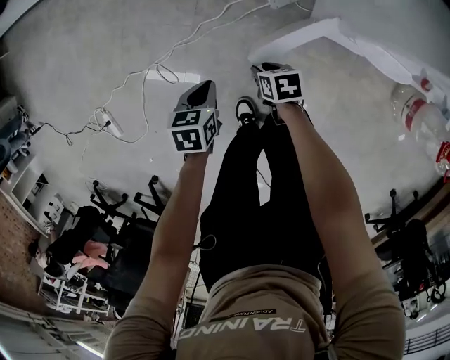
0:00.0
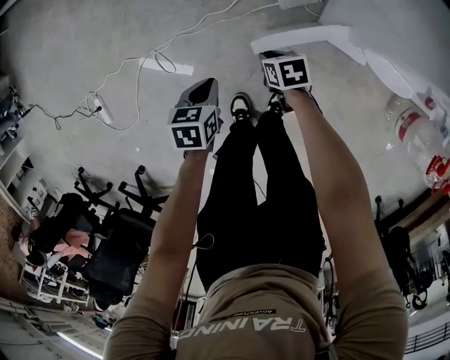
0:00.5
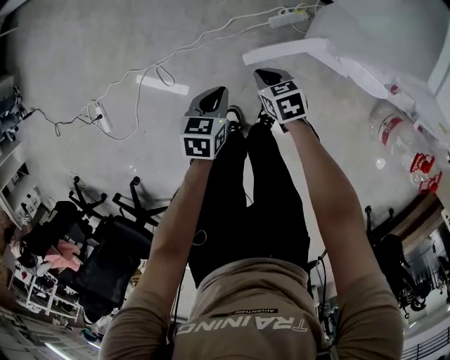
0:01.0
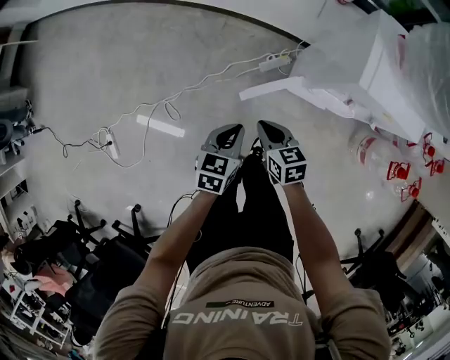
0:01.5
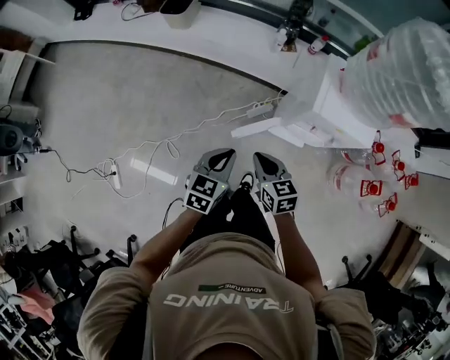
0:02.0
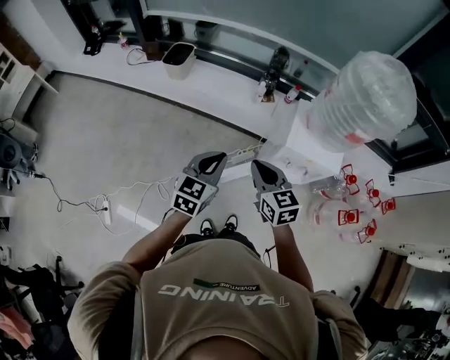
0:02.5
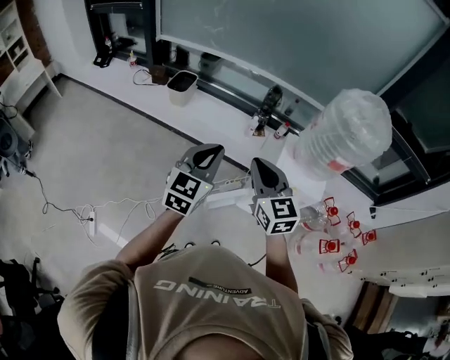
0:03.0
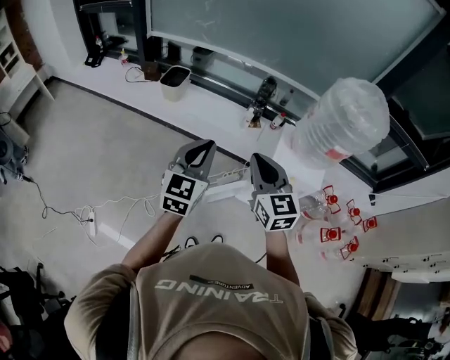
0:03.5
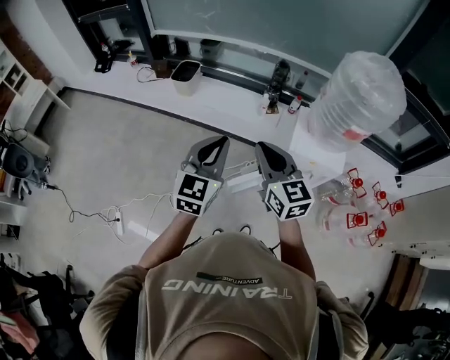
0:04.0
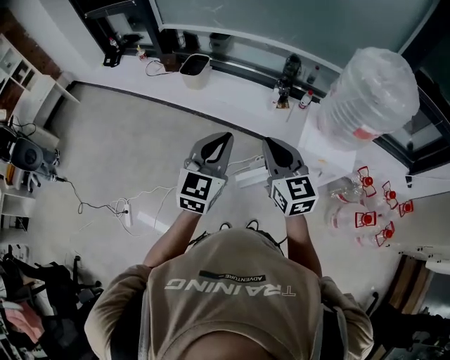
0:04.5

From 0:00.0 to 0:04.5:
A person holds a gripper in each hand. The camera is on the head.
From 0:00.0 to 0:02.0: Both grippers travel together upward, approximately 40 cm. The left gripper turns by about 40 degrees; the right gripper changes its angle by approximately 40 degrees, and closes.
From 0:02.0 to 0:04.5: The grippers both shift upward by about 30 cm. The right gripper turns by approximately 30 degrees. Meanwhile the left gripper swivels about 30 degrees.

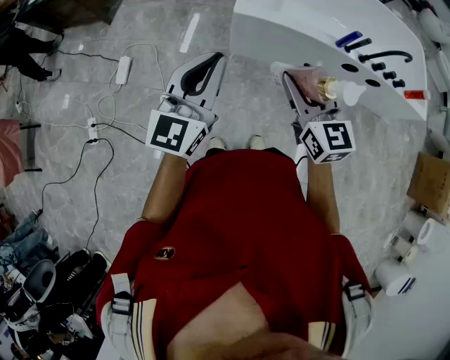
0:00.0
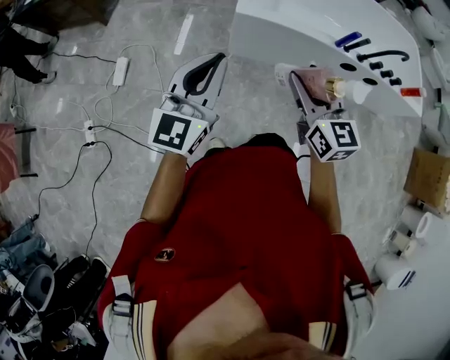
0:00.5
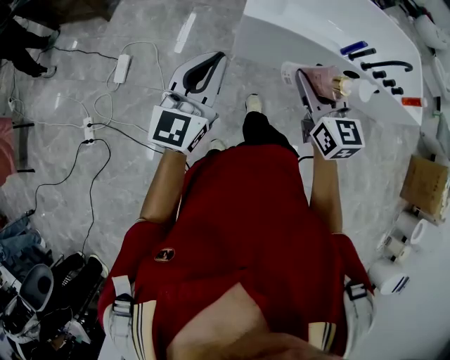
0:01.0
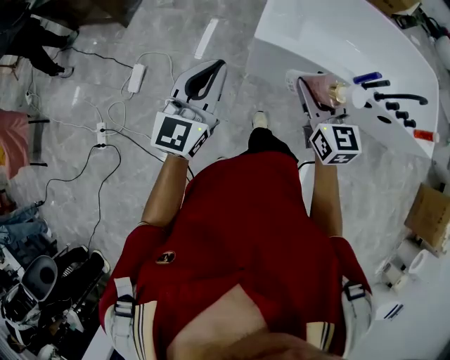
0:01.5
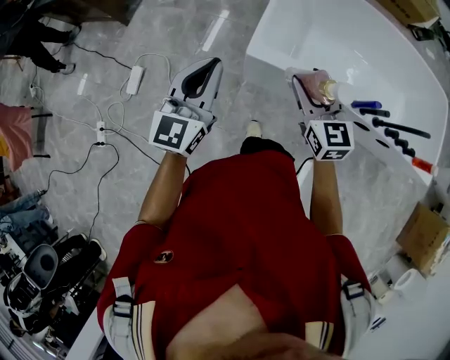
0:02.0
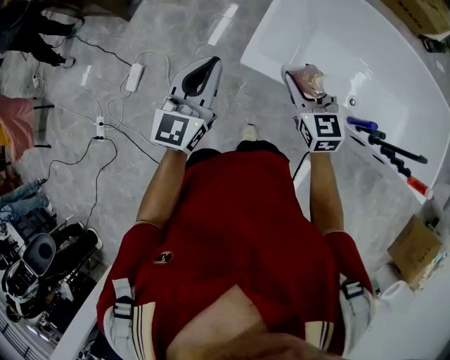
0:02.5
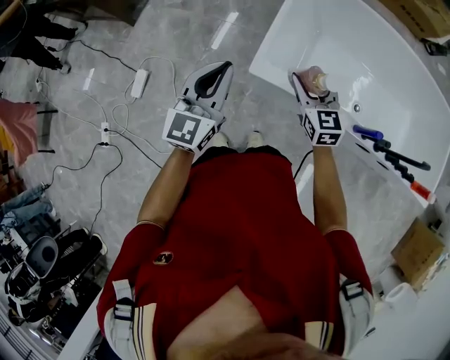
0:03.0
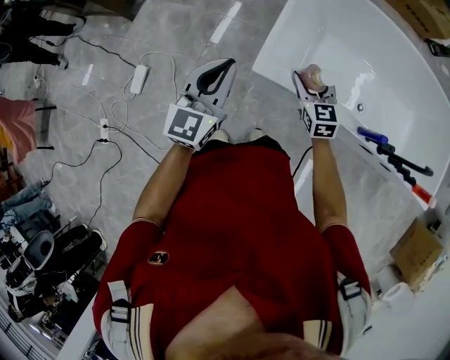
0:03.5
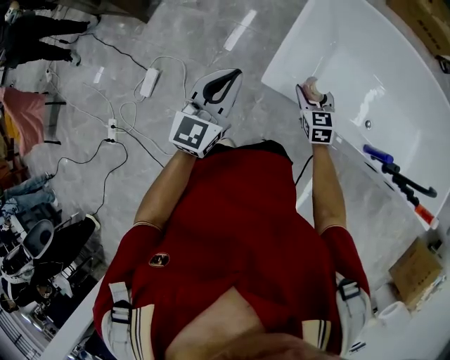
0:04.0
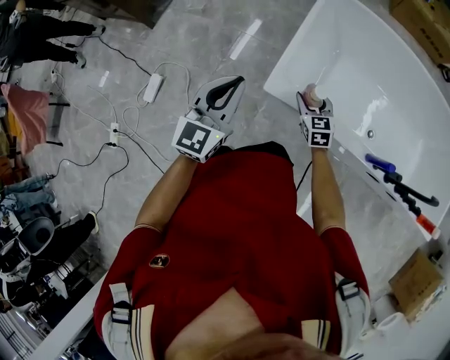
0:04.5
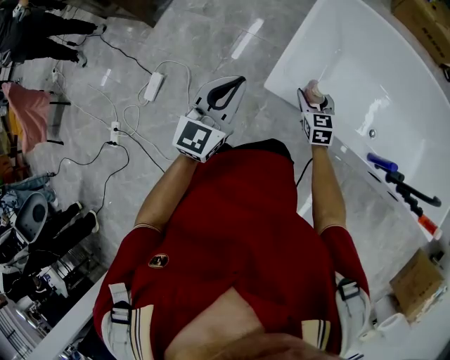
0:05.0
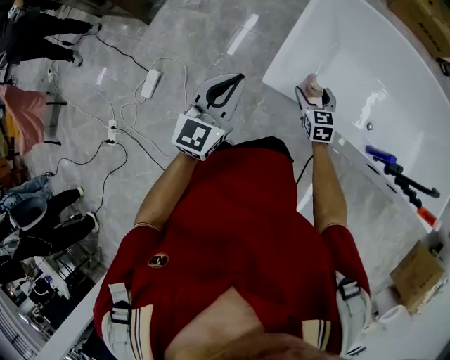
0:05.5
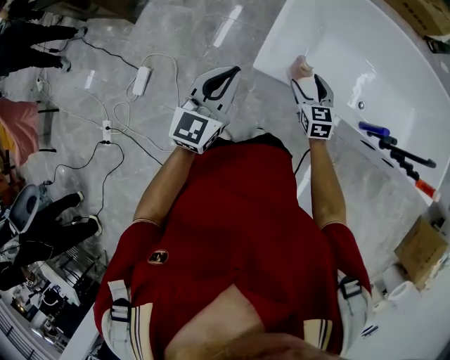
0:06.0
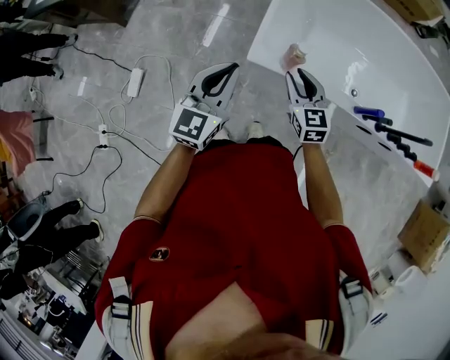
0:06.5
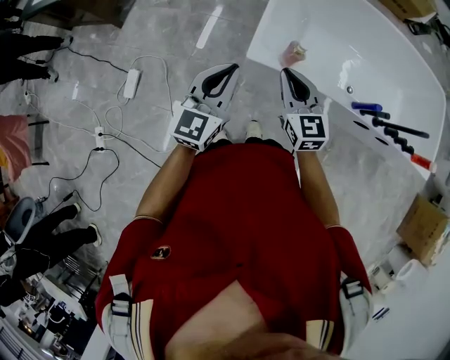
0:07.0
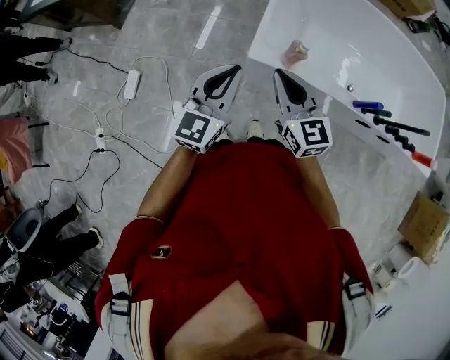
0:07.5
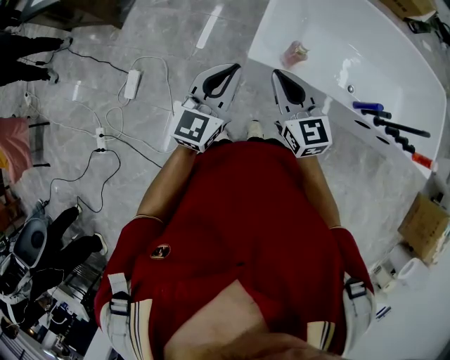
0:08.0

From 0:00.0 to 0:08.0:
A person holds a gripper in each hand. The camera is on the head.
From 0:00.0 to 0:02.0: The two grippers go approximately 30 cm forward.
From 0:02.0 to 0:04.0: The left gripper is displaced forward and downward by roughly 15 cm, while the right gripper heads downward and forward, covering about 30 cm.
From 0:04.0 to 0:06.0: The right gripper shifts roughly 5 cm backward.
From 0:06.0 to 0:08.0: The left gripper changes place by approximately 5 cm, while the right gripper is displaced upward, to the left and backward by roughly 25 cm, and closes.

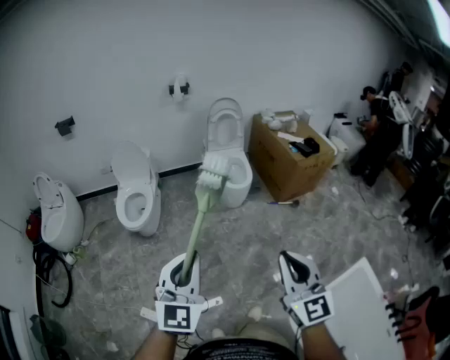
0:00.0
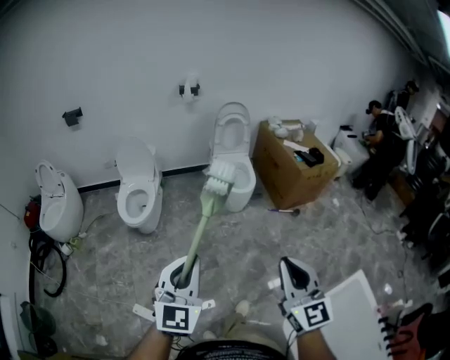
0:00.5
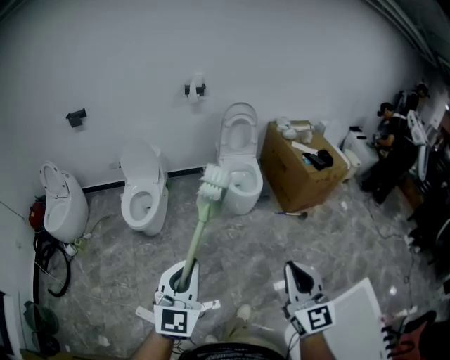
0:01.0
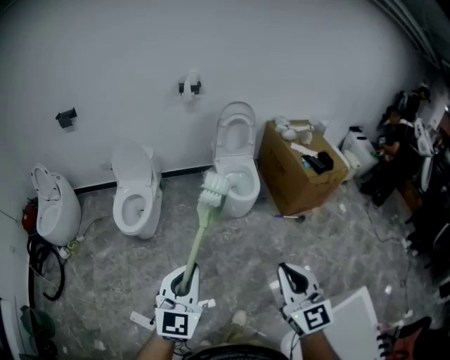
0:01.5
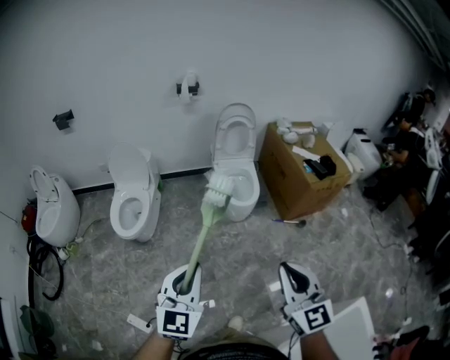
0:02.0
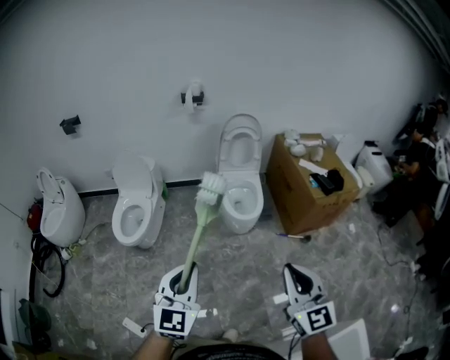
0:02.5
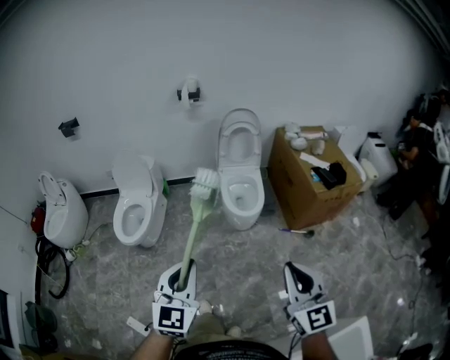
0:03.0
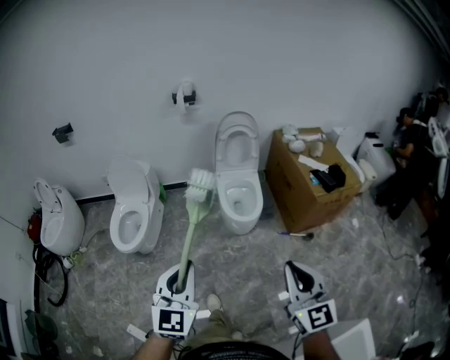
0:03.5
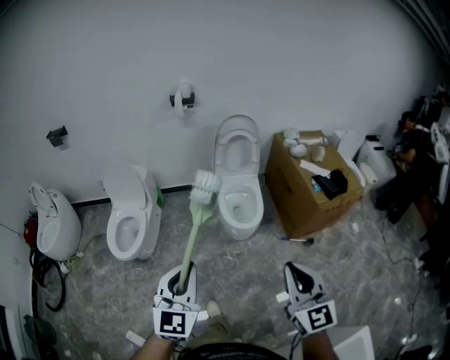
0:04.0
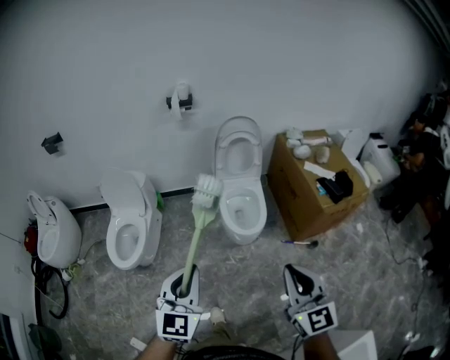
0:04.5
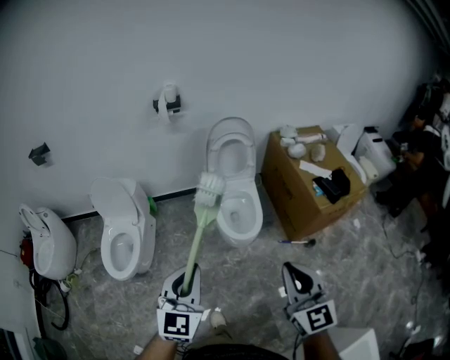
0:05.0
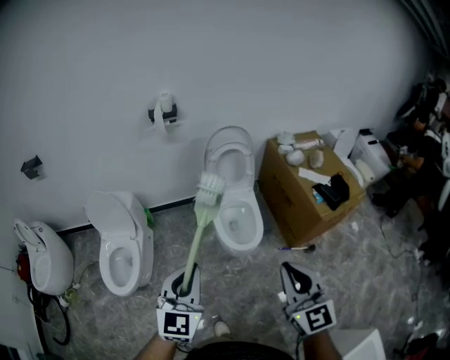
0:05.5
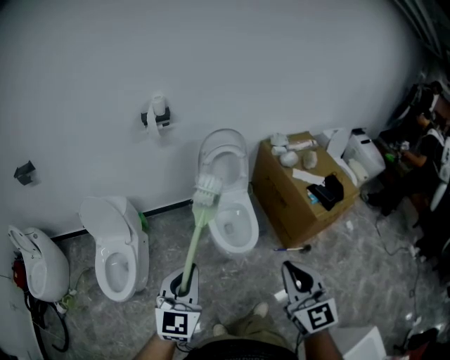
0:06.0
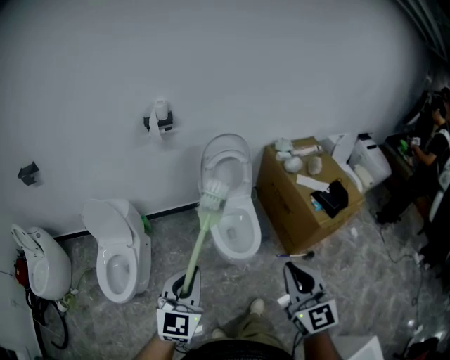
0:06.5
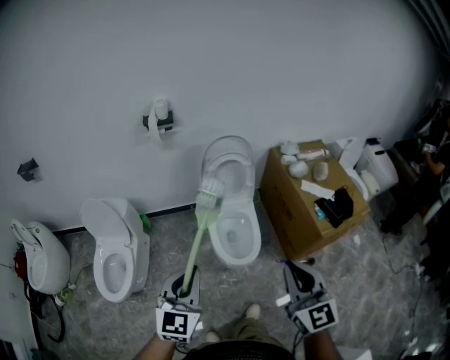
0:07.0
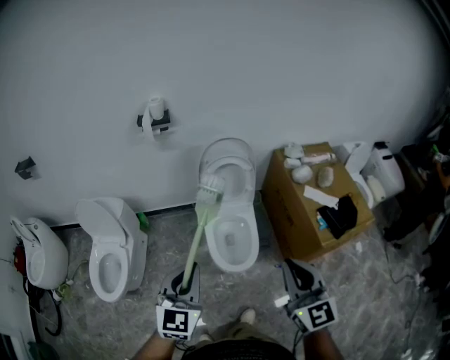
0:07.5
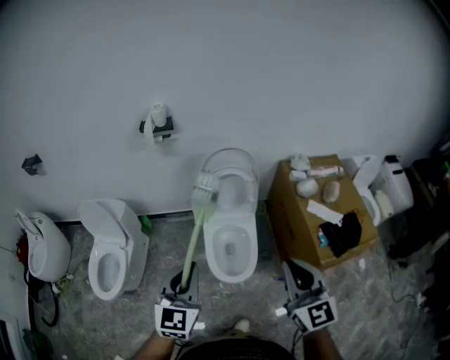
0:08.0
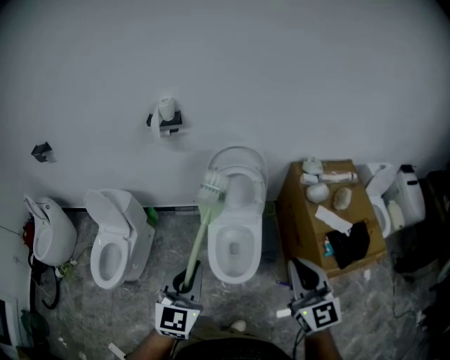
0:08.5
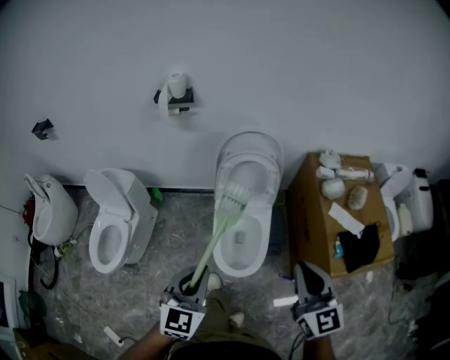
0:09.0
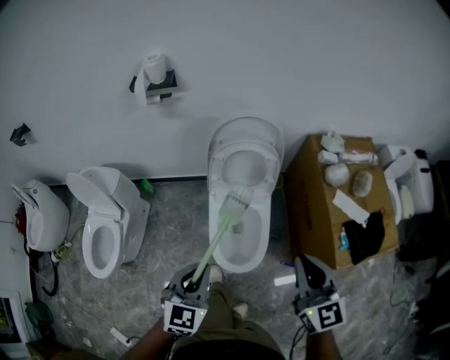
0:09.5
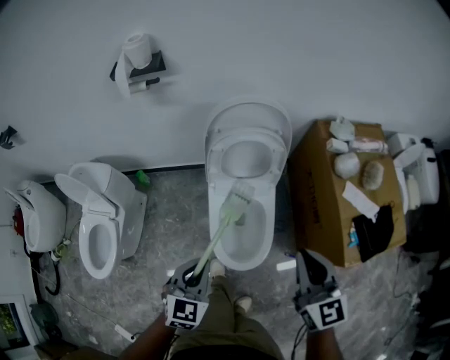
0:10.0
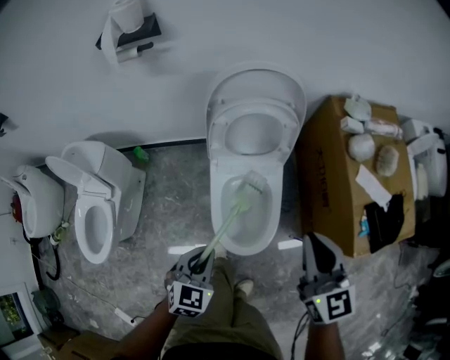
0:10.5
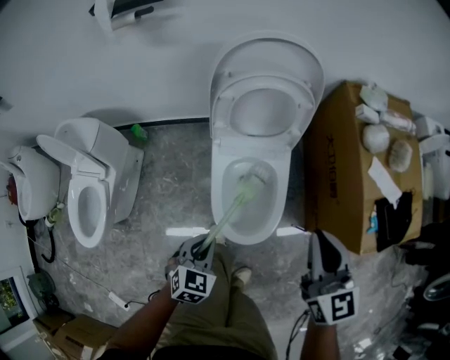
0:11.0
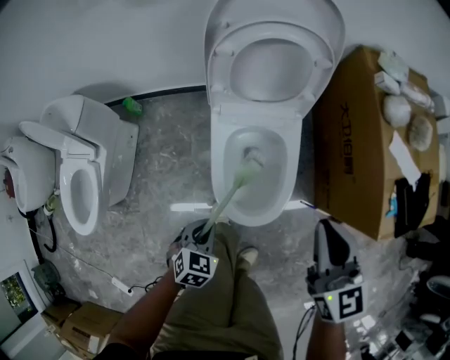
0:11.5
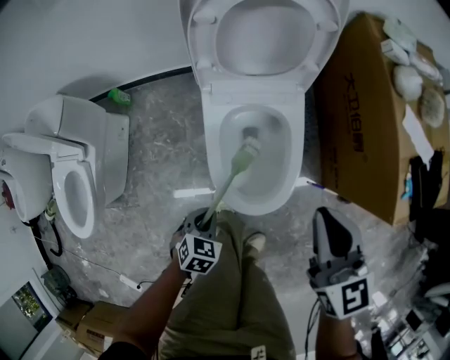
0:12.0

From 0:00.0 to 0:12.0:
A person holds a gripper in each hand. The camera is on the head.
From 0:00.0 to 0:02.0: The two grippers go approximately 15 cm forward.
From 0:02.0 to 0:04.0: The left gripper shifts some 15 cm forward. The right gripper goes roughly 20 cm forward and to the right.
From 0:04.0 to 0:06.0: The grippers both shift forward by about 20 cm.
From 0:06.0 to 0:08.0: Both grippers move forward and to the right, roughly 25 cm.
From 0:08.0 to 0:10.0: The left gripper travels downward and forward by some 25 cm, and rotates roughly 20 degrees. Meanwhile the right gripper is displaced forward and downward by about 25 cm.
From 0:10.0 to 0:12.0: The right gripper heads downward, covering about 20 cm, while the left gripper shifts about 35 cm downward, and tips its fingers downward by some 30 degrees.

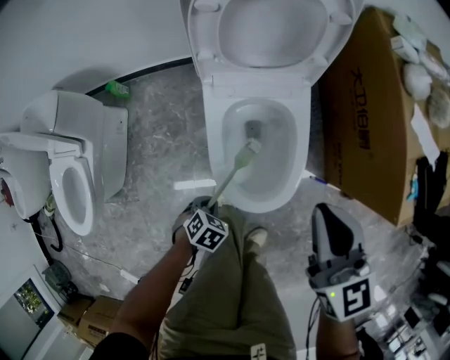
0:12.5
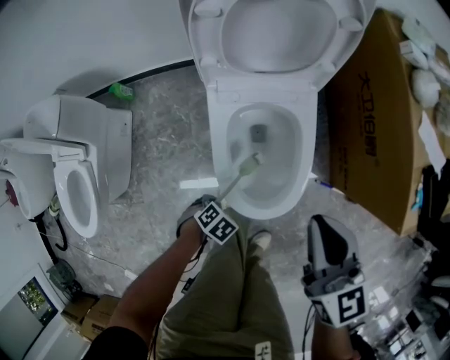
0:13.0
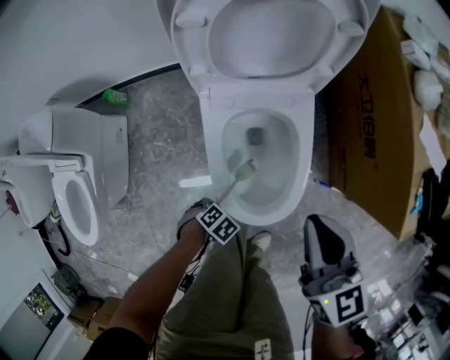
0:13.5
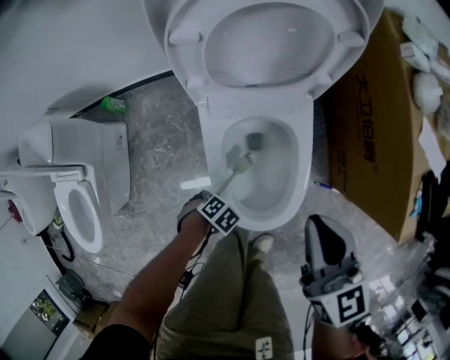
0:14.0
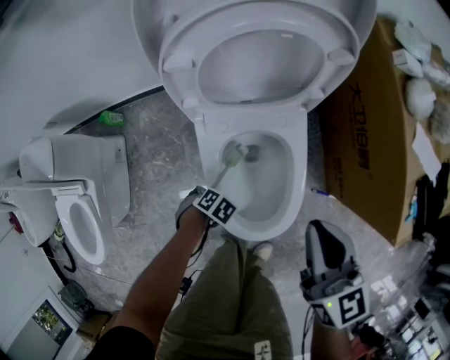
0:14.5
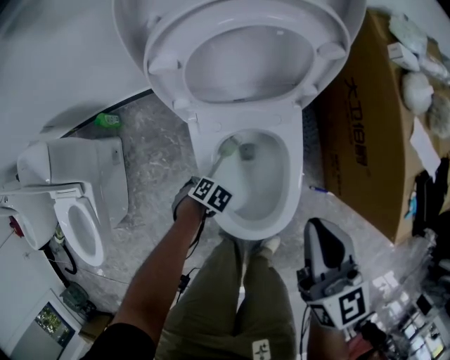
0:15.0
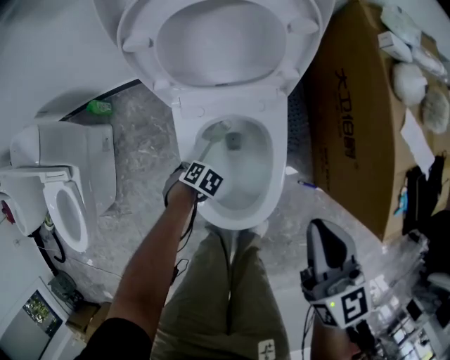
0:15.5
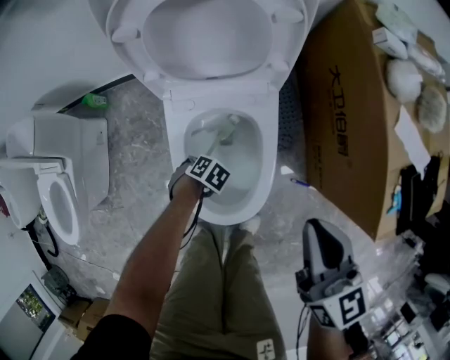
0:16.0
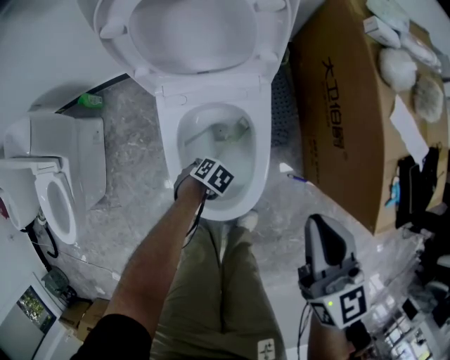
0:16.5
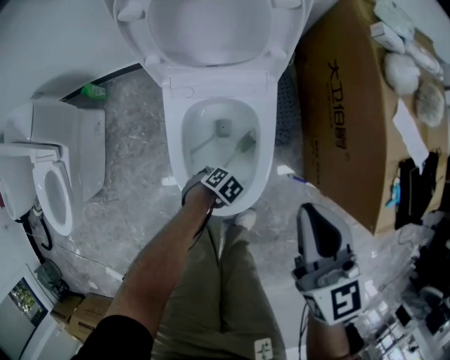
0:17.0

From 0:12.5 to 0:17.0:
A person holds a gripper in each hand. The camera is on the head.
From 0:12.5 to 0:14.5: The right gripper moves some 10 cm. The left gripper ends up approximately 15 cm from where it was, and turns by some 20 degrees.
From 0:14.5 to 0:17.0: The left gripper moves some 15 cm; the right gripper shifts by approximately 10 cm.
